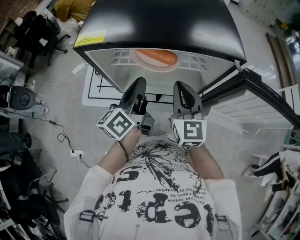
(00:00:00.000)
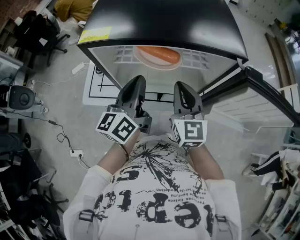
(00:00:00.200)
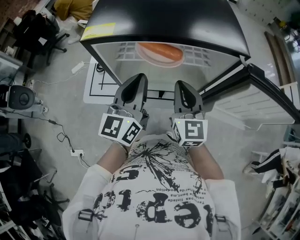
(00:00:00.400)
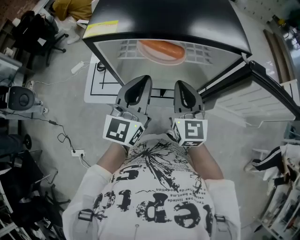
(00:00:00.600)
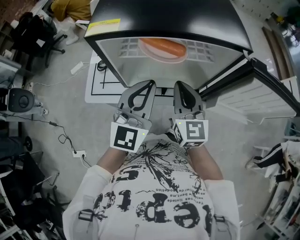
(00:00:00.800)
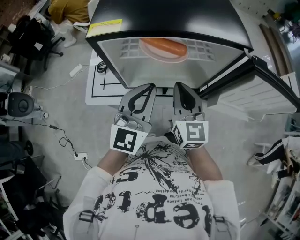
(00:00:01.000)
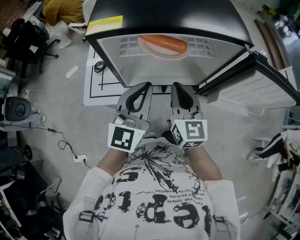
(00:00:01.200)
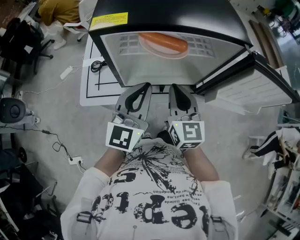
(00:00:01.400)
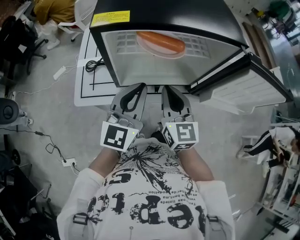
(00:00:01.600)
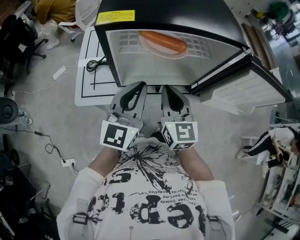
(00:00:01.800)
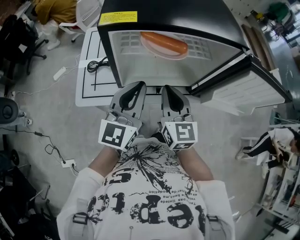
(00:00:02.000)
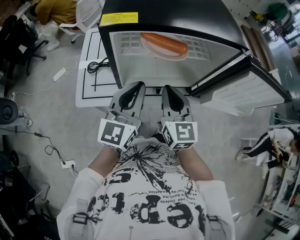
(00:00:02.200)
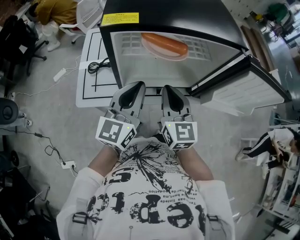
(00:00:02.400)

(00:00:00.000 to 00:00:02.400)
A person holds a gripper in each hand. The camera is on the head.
00:00:00.000 - 00:00:01.200: The left gripper heads backward, covering about 5 cm, and rotates around the line of its fingers by about 50 degrees, clockwise from behind. Meanwhile the right gripper changes place by about 5 cm.
00:00:01.200 - 00:00:02.400: The grippers move only a little.

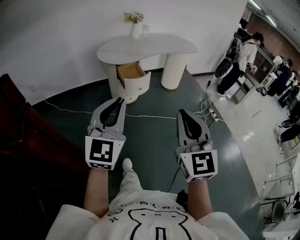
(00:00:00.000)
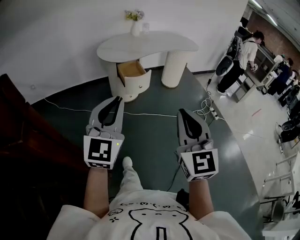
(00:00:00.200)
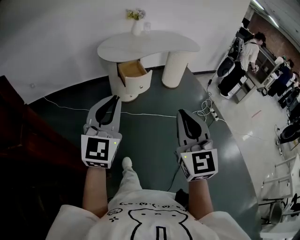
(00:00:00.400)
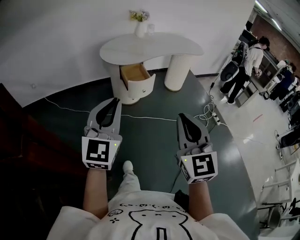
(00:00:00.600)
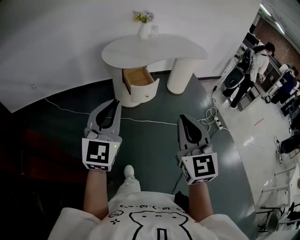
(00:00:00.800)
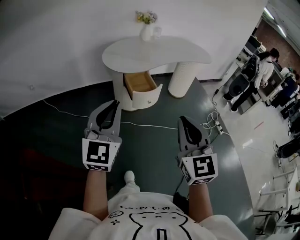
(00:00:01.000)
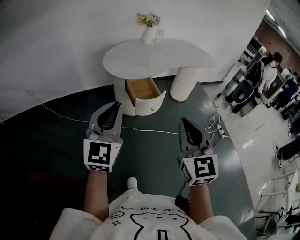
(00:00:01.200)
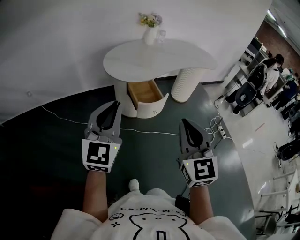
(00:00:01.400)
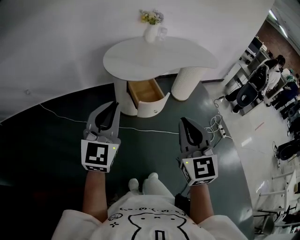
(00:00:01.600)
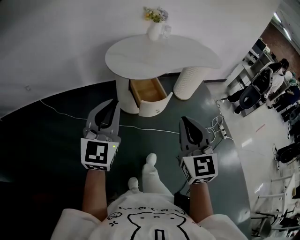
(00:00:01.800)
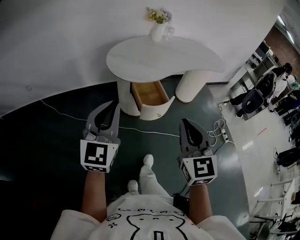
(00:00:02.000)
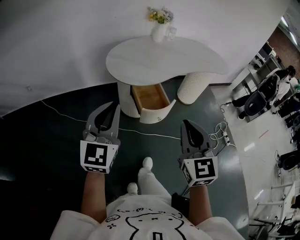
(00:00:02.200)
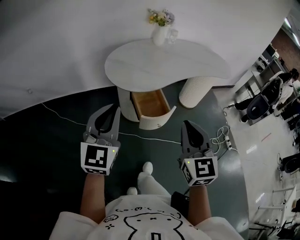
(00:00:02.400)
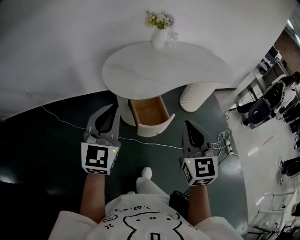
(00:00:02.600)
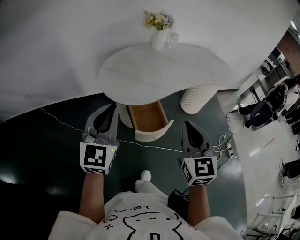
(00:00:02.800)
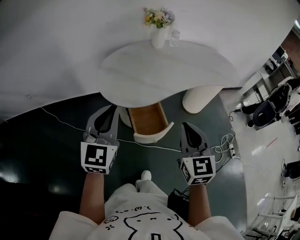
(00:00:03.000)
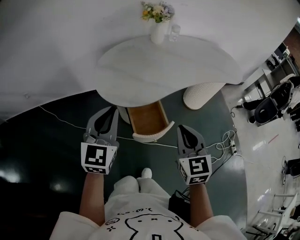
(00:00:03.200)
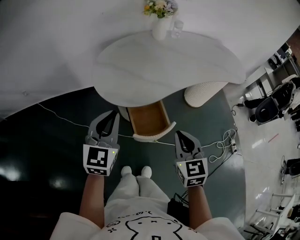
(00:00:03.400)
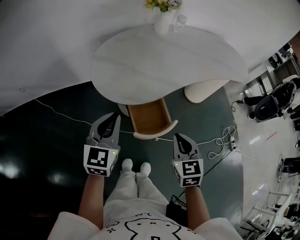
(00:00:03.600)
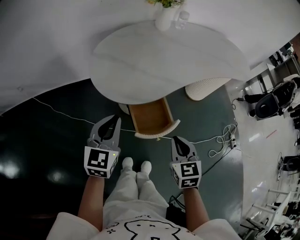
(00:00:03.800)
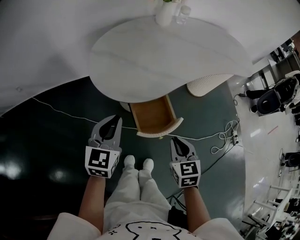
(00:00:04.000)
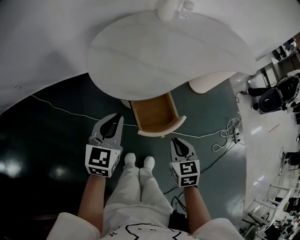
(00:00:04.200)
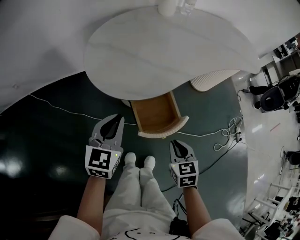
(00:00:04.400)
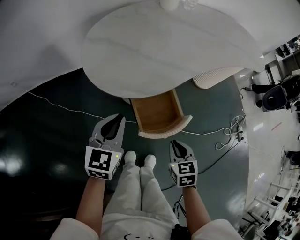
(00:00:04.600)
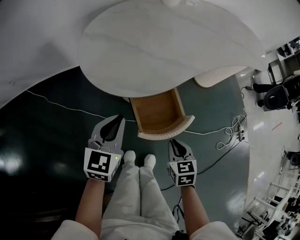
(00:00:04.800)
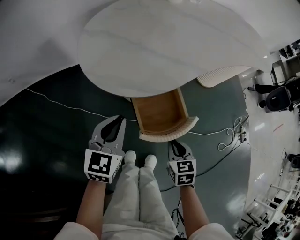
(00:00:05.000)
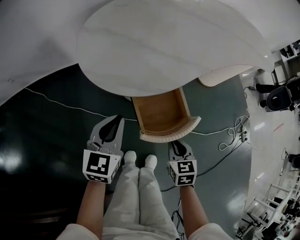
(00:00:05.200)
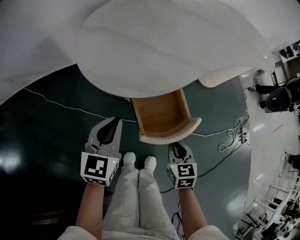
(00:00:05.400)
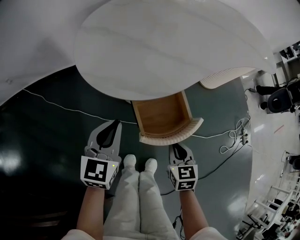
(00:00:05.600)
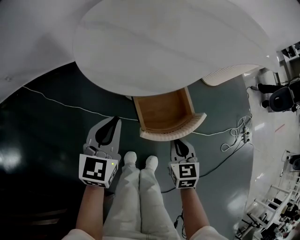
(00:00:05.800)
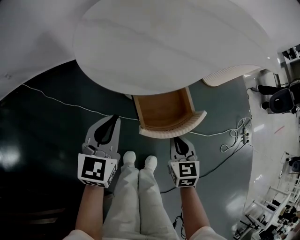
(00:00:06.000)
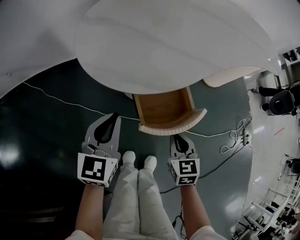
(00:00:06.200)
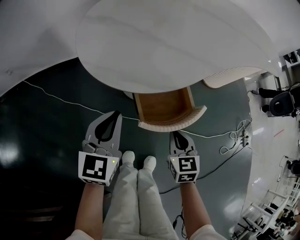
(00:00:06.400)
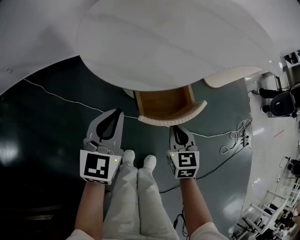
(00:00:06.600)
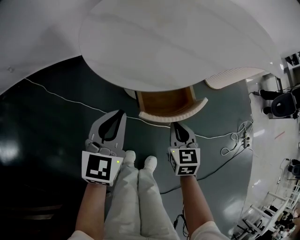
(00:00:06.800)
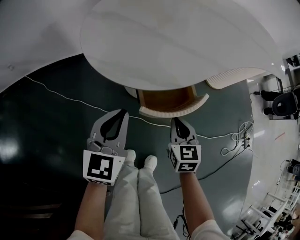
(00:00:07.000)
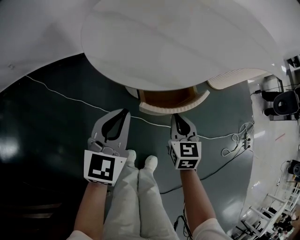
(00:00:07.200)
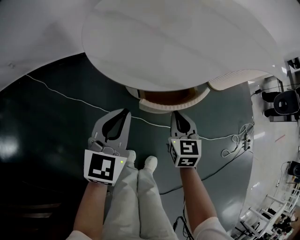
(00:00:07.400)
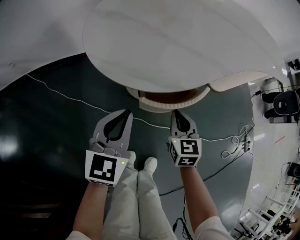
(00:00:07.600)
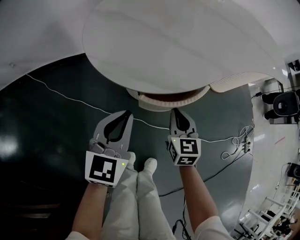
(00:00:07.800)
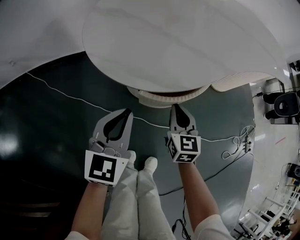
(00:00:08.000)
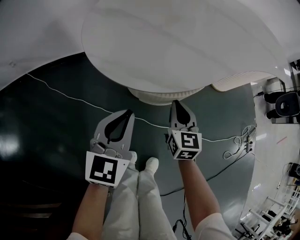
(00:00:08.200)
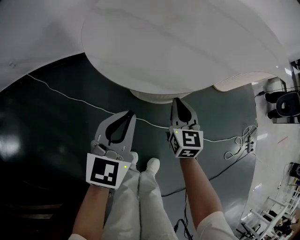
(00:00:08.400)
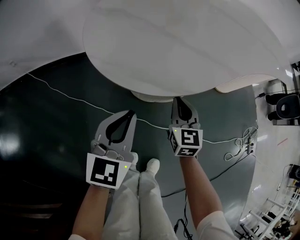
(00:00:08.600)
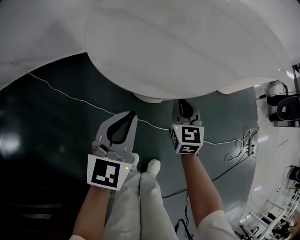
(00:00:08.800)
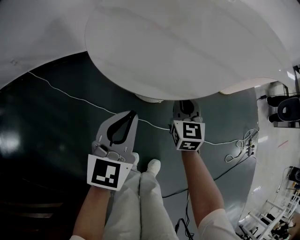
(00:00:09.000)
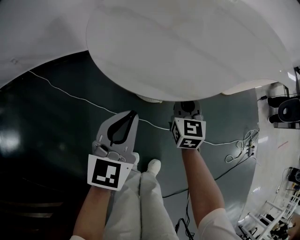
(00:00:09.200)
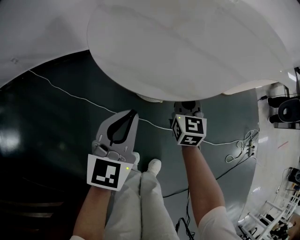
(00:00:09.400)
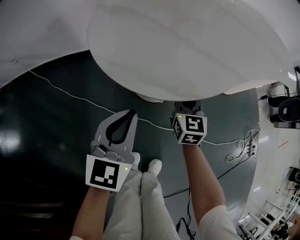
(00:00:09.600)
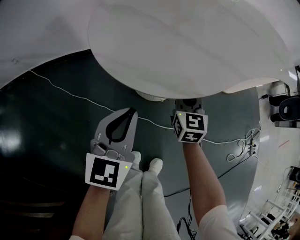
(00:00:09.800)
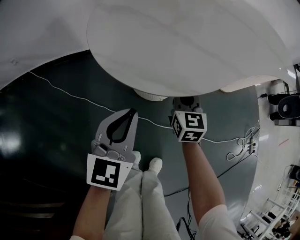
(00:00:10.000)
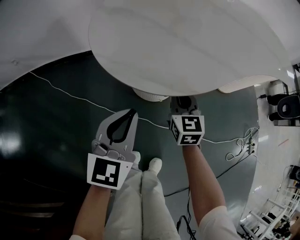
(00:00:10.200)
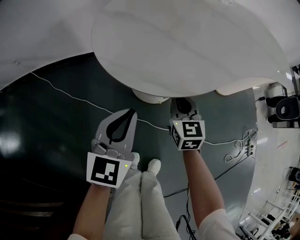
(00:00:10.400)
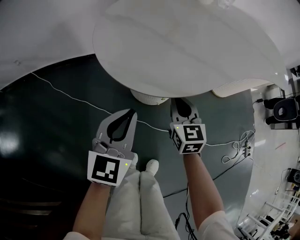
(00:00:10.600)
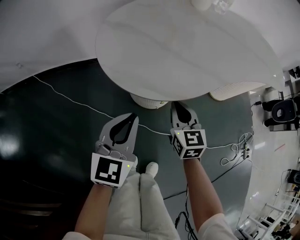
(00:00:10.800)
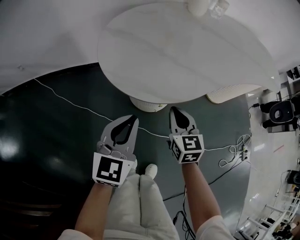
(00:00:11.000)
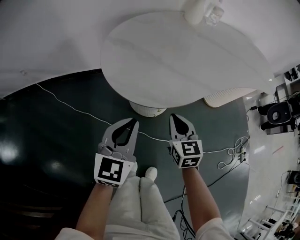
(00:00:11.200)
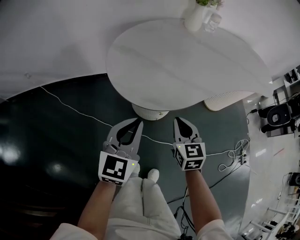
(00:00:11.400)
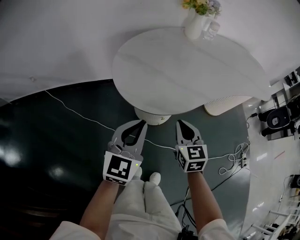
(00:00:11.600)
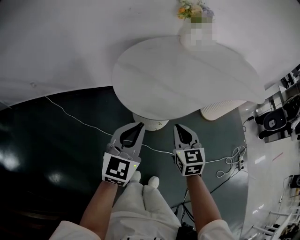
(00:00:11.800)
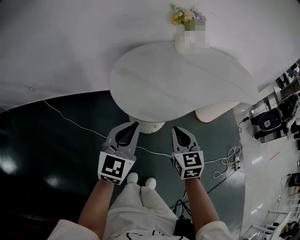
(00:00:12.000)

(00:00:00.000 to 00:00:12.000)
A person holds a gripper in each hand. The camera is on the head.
00:00:00.000 - 00:00:01.600: The two grippers go about 30 cm forward and to the left.
00:00:01.600 - 00:00:03.000: The two grippers go about 25 cm forward.
00:00:03.000 - 00:00:04.400: Both grippers travel together downward, some 25 cm. The right gripper points its fingers some 30 degrees further downward; the left gripper rotates about 20 degrees.
00:00:04.400 - 00:00:06.000: The two grippers go approximately 10 cm downward.
00:00:06.000 - 00:00:07.600: The right gripper travels forward by some 10 cm.
00:00:07.600 - 00:00:09.000: The right gripper heads forward, covering about 10 cm.
00:00:09.000 - 00:00:10.400: There are only small adjustments of the grippers.
00:00:10.400 - 00:00:12.000: The left gripper goes some 20 cm upward. The right gripper moves upward and backward, about 25 cm.

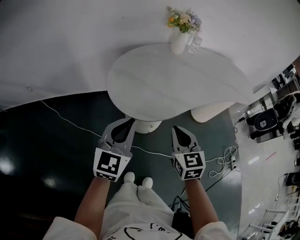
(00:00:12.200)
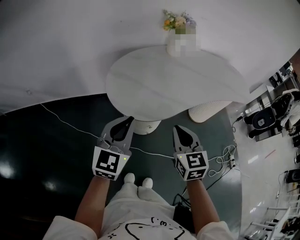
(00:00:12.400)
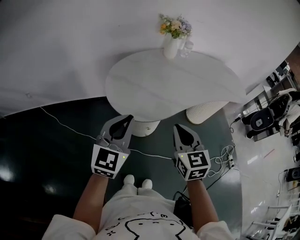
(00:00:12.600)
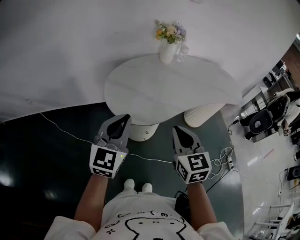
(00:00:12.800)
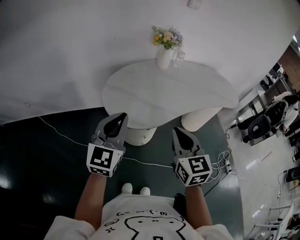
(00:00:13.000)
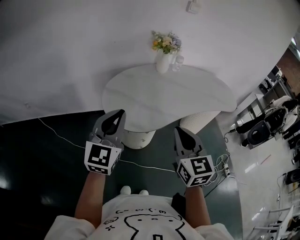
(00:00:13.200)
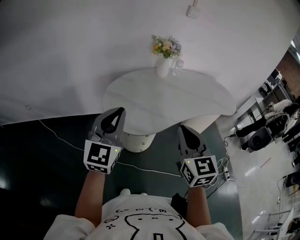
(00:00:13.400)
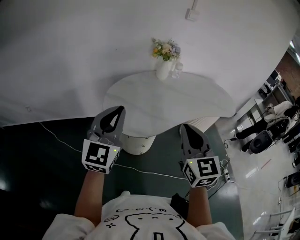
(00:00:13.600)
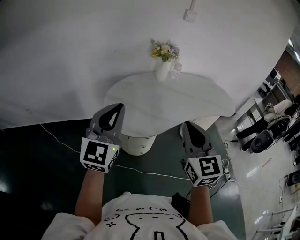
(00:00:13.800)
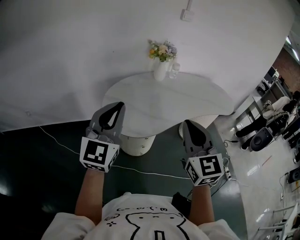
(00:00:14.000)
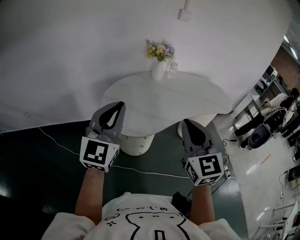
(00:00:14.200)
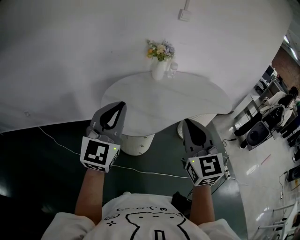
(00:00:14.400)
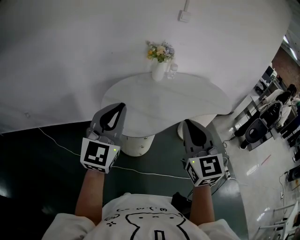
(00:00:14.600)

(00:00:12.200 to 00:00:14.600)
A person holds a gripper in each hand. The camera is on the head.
00:00:12.200 - 00:00:13.400: Both grippers move upward, roughly 15 cm.
00:00:13.400 - 00:00:14.600: The right gripper goes approximately 5 cm upward. The left gripper ends up roughly 5 cm from where it was.

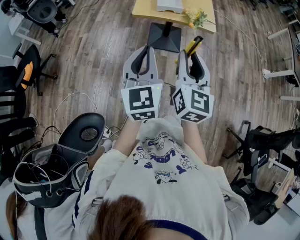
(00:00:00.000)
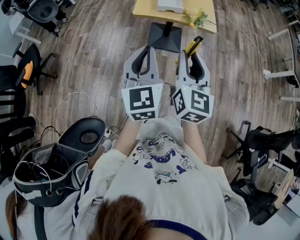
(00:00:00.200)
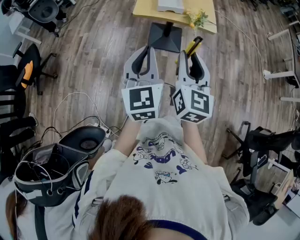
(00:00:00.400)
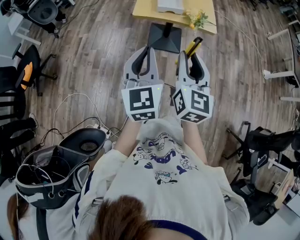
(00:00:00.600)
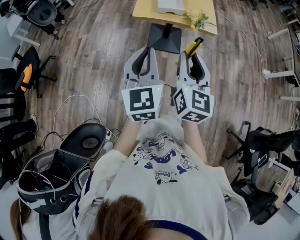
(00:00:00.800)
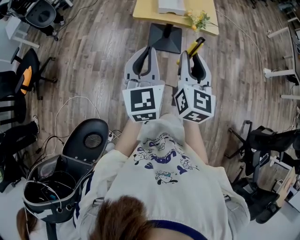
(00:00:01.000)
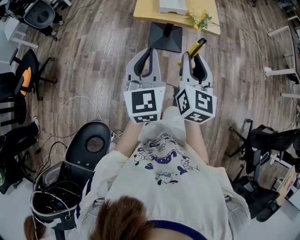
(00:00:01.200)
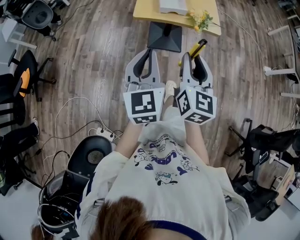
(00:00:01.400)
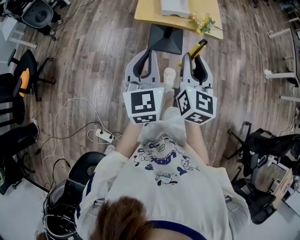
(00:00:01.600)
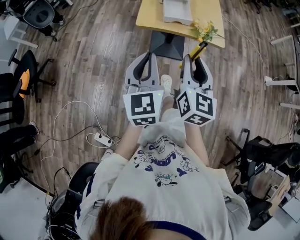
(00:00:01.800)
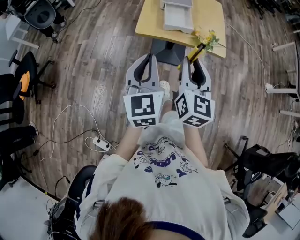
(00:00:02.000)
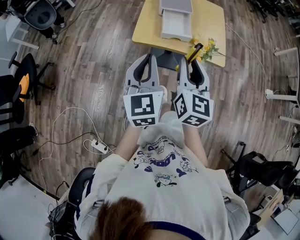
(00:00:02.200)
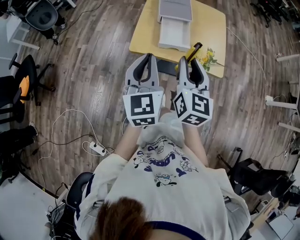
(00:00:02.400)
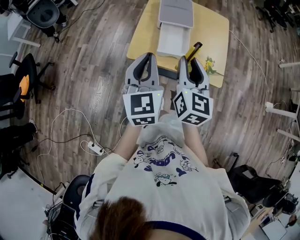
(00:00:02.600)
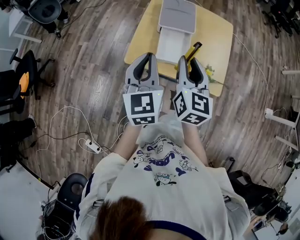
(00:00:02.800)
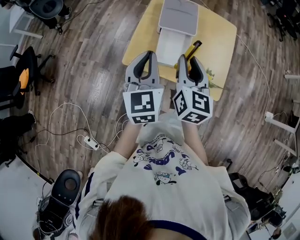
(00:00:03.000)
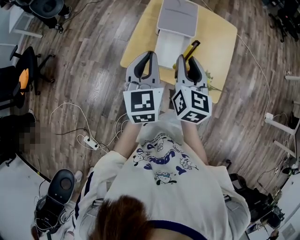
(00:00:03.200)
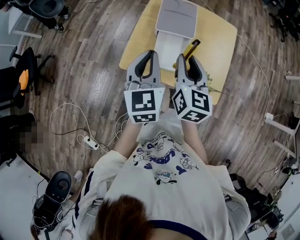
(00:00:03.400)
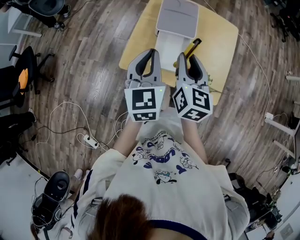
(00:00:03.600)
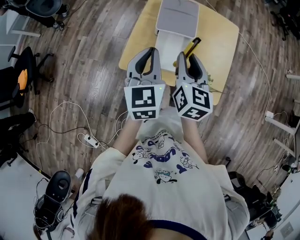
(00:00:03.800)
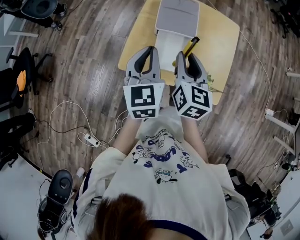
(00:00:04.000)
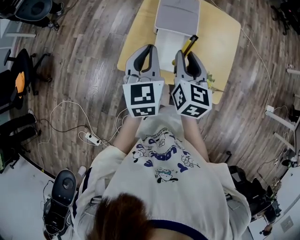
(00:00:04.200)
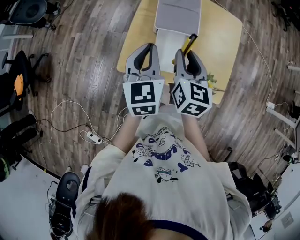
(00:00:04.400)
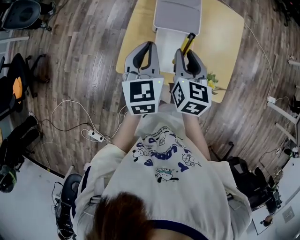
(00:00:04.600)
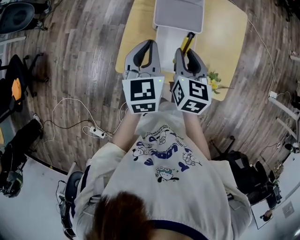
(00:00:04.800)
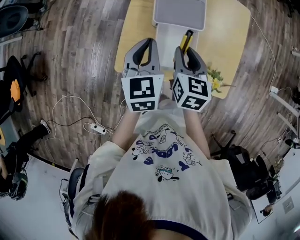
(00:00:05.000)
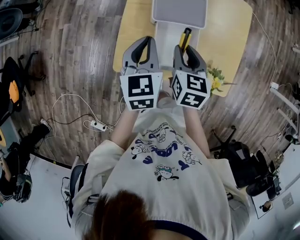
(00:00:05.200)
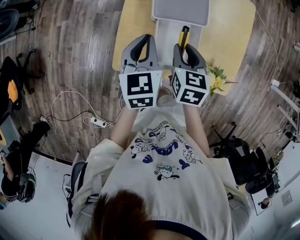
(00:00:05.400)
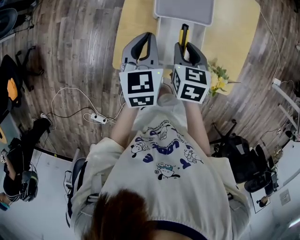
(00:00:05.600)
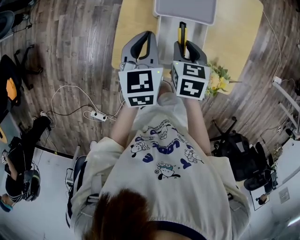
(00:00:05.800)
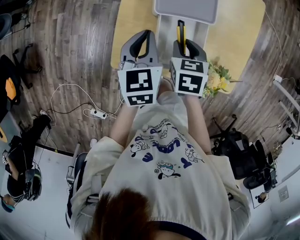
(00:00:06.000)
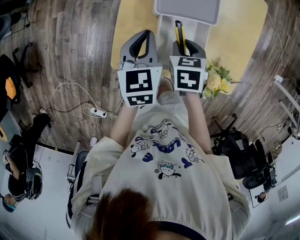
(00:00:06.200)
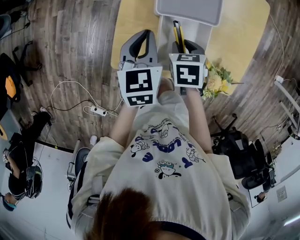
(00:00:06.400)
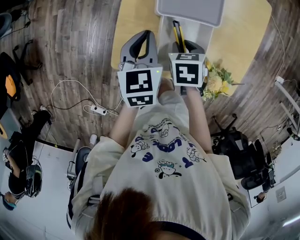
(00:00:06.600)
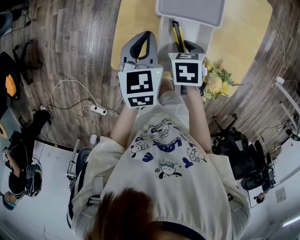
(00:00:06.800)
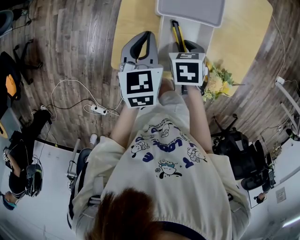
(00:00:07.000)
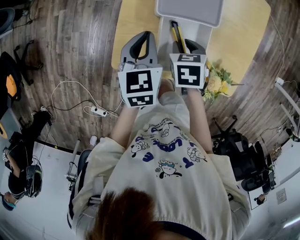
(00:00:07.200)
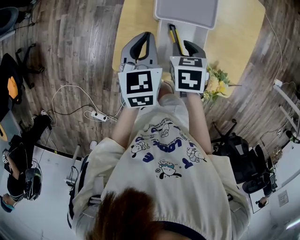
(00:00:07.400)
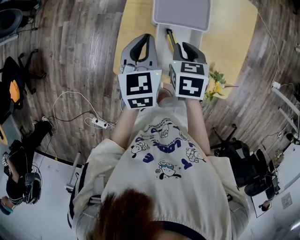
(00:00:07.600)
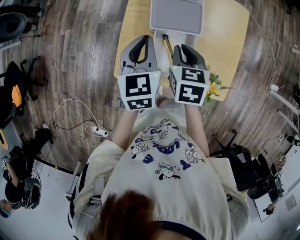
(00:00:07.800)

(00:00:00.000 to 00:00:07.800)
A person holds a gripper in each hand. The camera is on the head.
00:00:00.000 - 00:00:01.600: Both grippers move forward, some 10 cm.
00:00:01.600 - 00:00:03.200: The two grippers go about 40 cm forward.
00:00:03.200 - 00:00:04.600: Both grippers travel together forward and downward, some 10 cm.
00:00:04.600 - 00:00:06.200: Both grippers move downward, some 15 cm. The right gripper tips its fingers downward by roughly 40 degrees.
00:00:06.200 - 00:00:07.800: The grippers both shift upward by approximately 10 cm.
